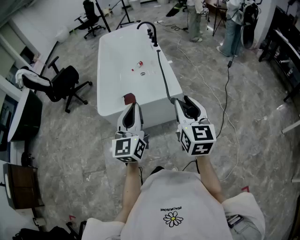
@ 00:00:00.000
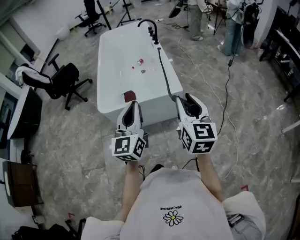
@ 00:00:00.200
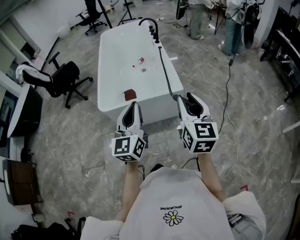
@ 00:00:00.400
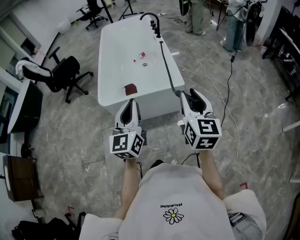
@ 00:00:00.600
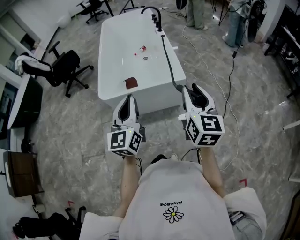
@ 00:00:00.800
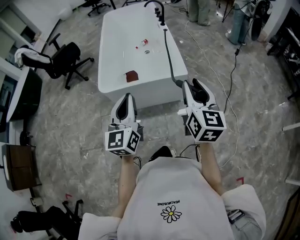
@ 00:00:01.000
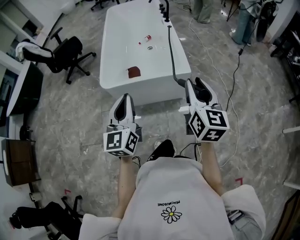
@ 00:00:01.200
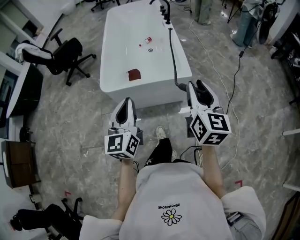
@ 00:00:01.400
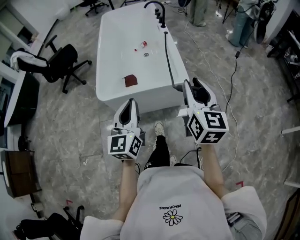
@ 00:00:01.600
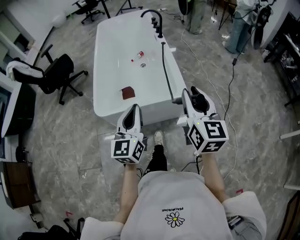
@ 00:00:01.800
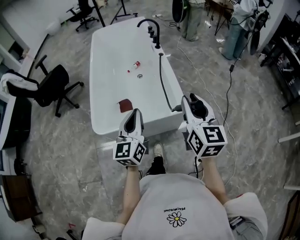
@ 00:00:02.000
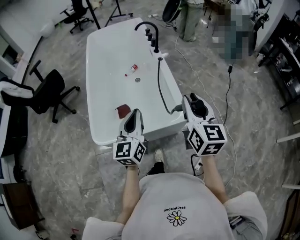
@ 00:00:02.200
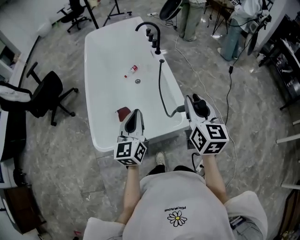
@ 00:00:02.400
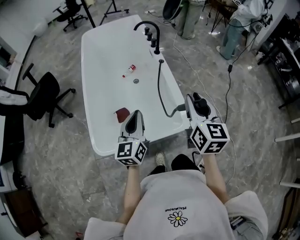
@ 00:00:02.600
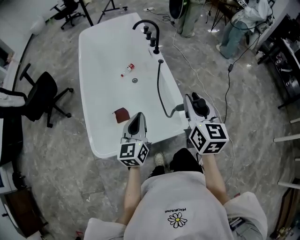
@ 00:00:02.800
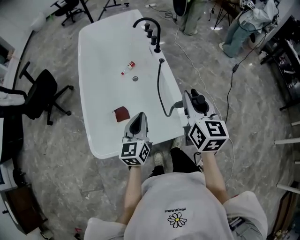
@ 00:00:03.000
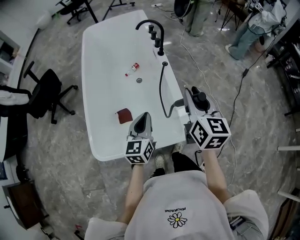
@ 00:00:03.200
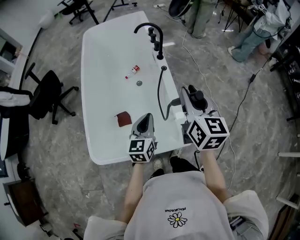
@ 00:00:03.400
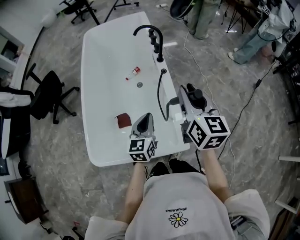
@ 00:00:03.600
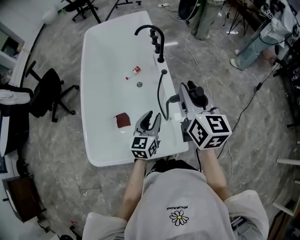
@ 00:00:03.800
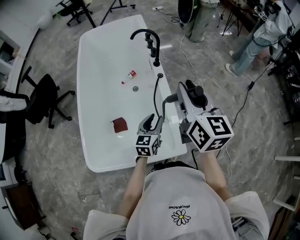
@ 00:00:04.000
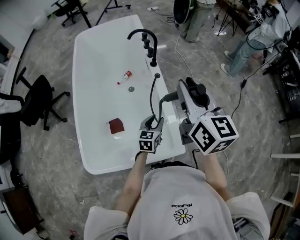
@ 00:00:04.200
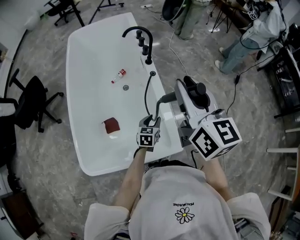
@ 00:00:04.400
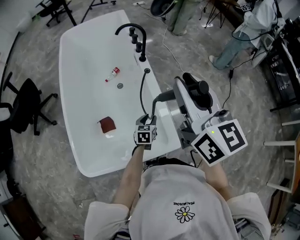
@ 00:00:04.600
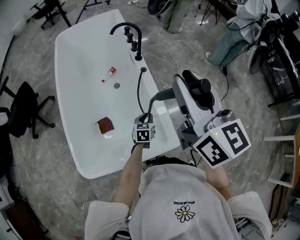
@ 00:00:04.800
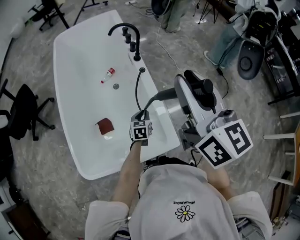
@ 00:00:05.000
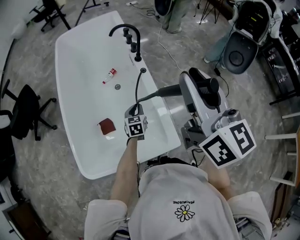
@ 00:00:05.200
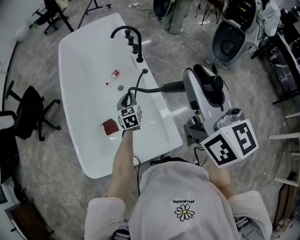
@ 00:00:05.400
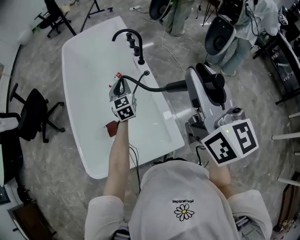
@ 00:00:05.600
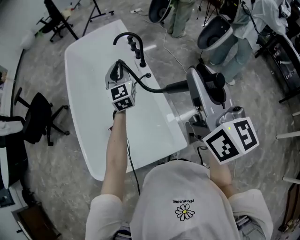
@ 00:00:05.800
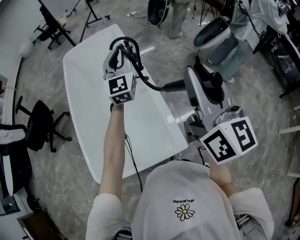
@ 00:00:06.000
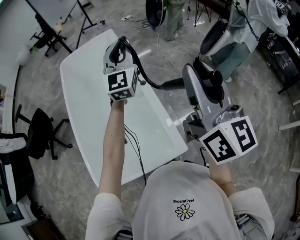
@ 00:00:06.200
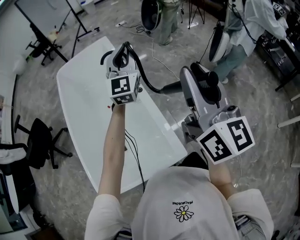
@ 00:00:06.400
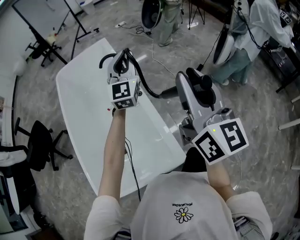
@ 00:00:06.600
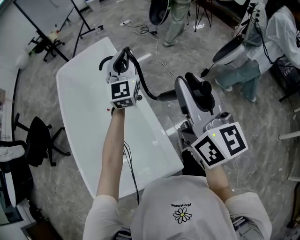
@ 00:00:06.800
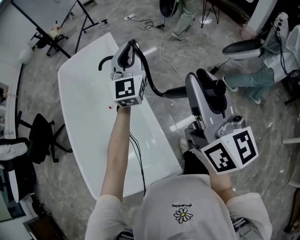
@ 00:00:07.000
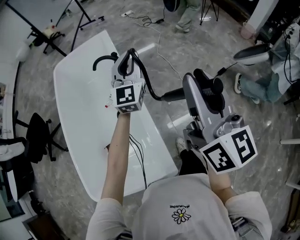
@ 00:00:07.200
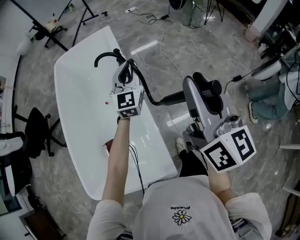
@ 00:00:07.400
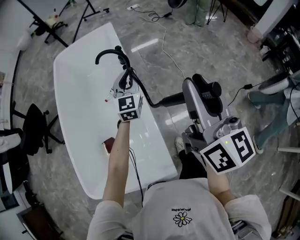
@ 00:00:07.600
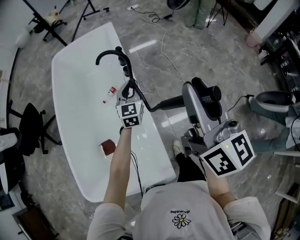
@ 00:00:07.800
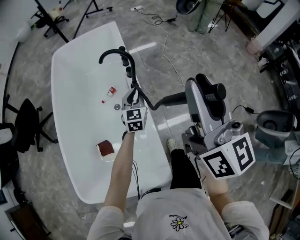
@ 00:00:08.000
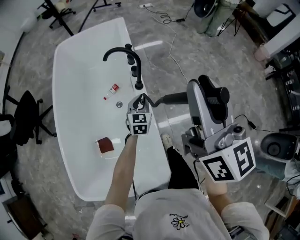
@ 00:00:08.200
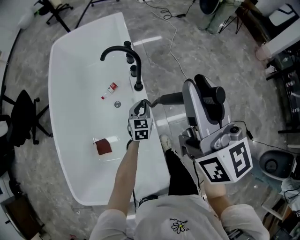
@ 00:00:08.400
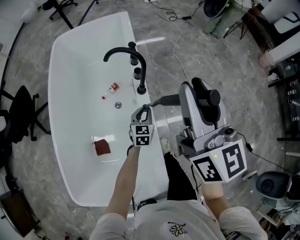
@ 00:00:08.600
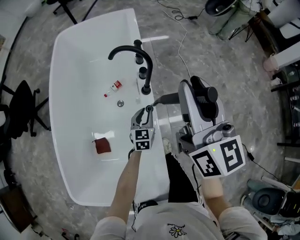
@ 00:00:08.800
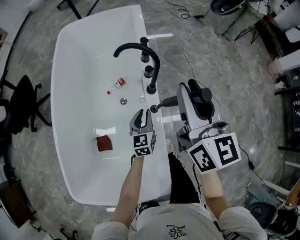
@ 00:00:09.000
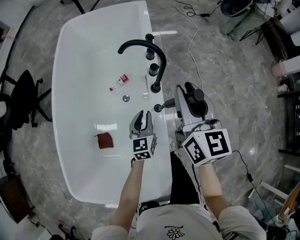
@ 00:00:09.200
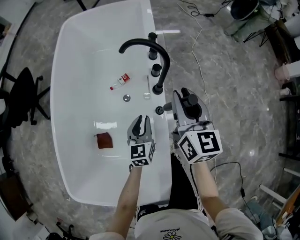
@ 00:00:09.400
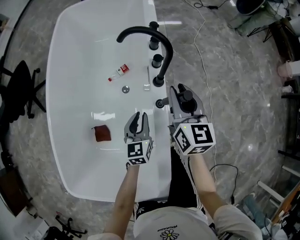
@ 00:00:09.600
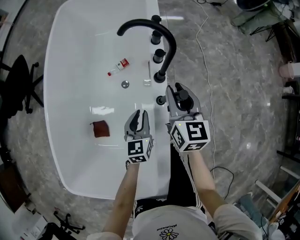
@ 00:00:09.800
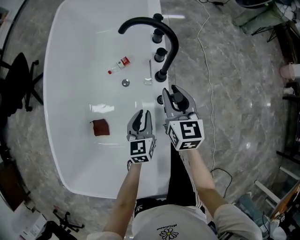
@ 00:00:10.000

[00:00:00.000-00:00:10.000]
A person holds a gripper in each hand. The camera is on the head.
00:00:00.000 to 00:00:01.400: The left gripper goes approximately 5 cm to the left.
00:00:01.400 to 00:00:02.800: The two grippers go roughly 40 cm forward.
00:00:02.800 to 00:00:04.200: The right gripper is displaced forward and upward by roughly 20 cm; the left gripper moves forward, downward and to the right, roughly 30 cm, rotates some 20 degrees, and opens its fingers.
00:00:04.200 to 00:00:05.800: The right gripper moves upward and to the right, roughly 10 cm. The left gripper moves upward and forward, about 30 cm, turns by roughly 40 degrees, and closes its fingers.
00:00:05.800 to 00:00:07.200: The right gripper goes roughly 20 cm forward and to the right. Meanwhile the left gripper is displaced to the right and forward by some 25 cm.
00:00:07.200 to 00:00:08.600: The left gripper heads downward, covering about 40 cm, and tilts its fingers approximately 40 degrees downward. The right gripper goes roughly 25 cm forward, to the left and downward.
00:00:08.600 to 00:00:10.000: The right gripper moves downward, approximately 35 cm, and swivels about 30 degrees; the left gripper travels to the left by some 10 cm, and turns by about 20 degrees.

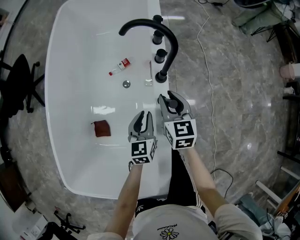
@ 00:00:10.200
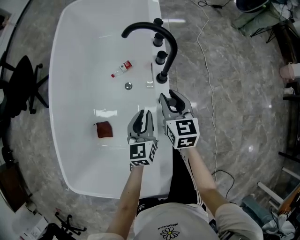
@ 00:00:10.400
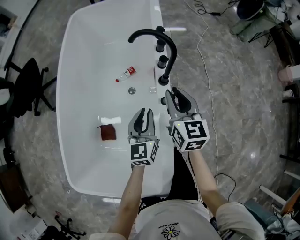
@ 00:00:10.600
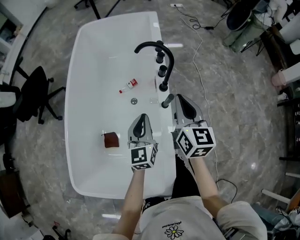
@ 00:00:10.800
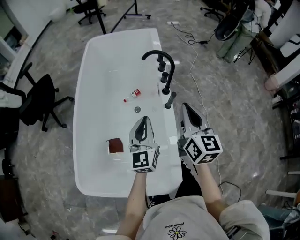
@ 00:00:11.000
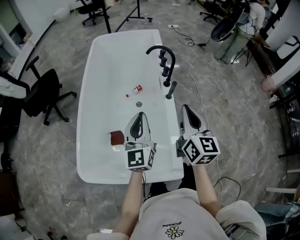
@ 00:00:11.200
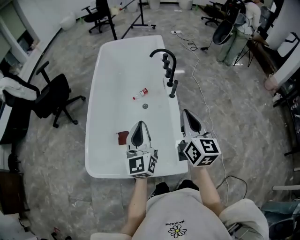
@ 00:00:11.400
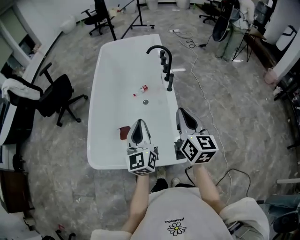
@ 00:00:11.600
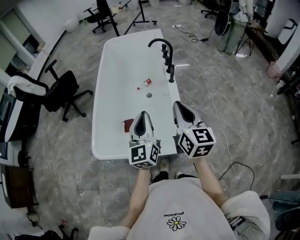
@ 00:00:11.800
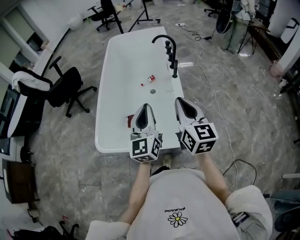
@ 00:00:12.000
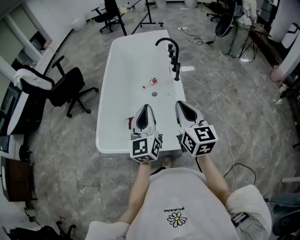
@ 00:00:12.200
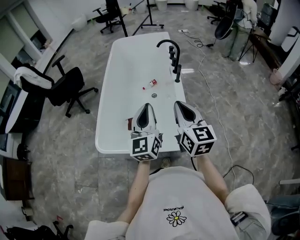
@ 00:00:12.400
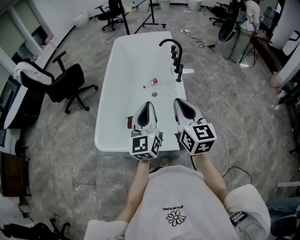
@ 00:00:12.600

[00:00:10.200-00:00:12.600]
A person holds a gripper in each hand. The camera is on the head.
00:00:10.200 to 00:00:11.400: The right gripper moves backward and upward, about 50 cm, rotates about 30 degrees, and closes up. The left gripper goes about 50 cm upward, backward and to the left, and tilts its fingers some 30 degrees upward.
00:00:11.400 to 00:00:12.600: The left gripper moves backward and upward, approximately 15 cm; the right gripper travels backward and to the left by some 15 cm.

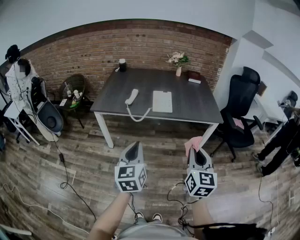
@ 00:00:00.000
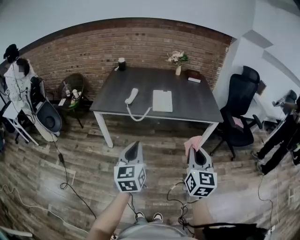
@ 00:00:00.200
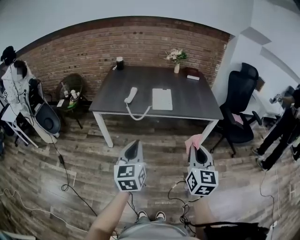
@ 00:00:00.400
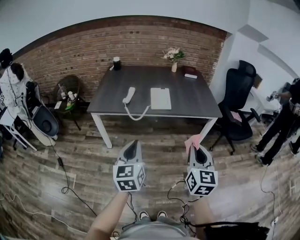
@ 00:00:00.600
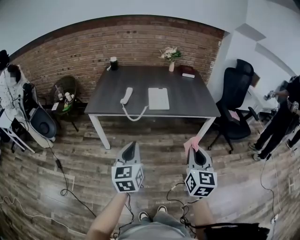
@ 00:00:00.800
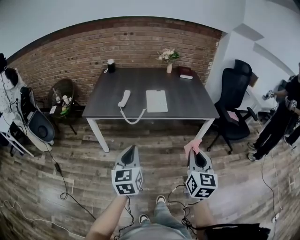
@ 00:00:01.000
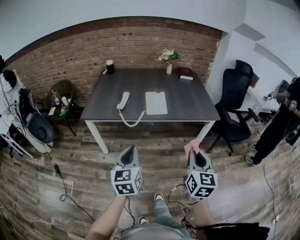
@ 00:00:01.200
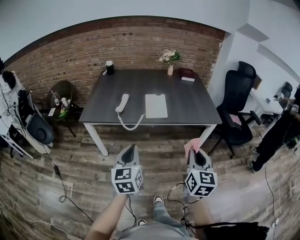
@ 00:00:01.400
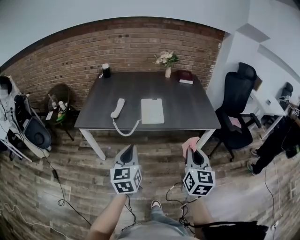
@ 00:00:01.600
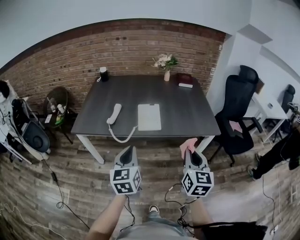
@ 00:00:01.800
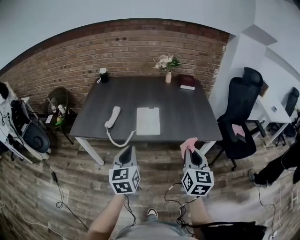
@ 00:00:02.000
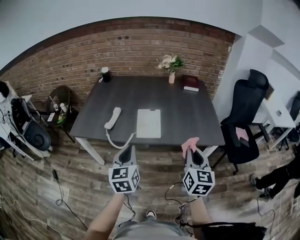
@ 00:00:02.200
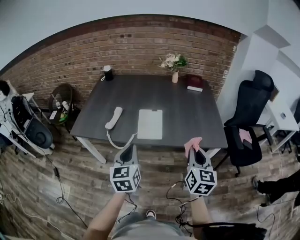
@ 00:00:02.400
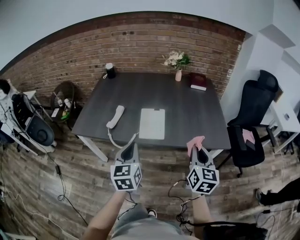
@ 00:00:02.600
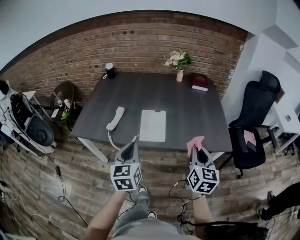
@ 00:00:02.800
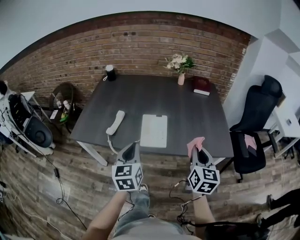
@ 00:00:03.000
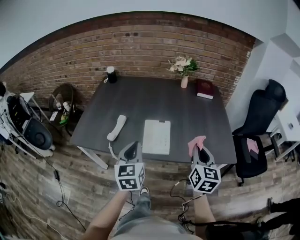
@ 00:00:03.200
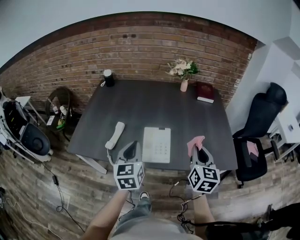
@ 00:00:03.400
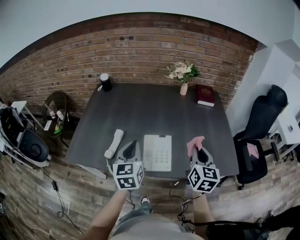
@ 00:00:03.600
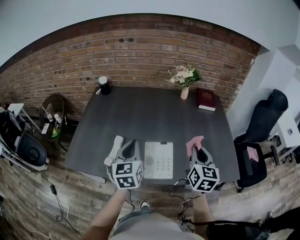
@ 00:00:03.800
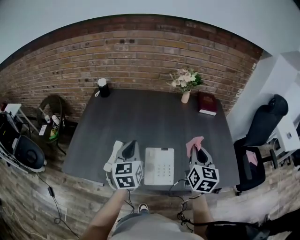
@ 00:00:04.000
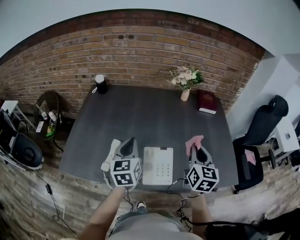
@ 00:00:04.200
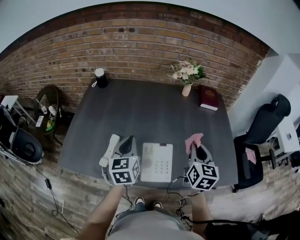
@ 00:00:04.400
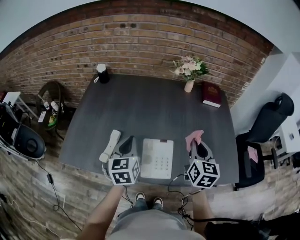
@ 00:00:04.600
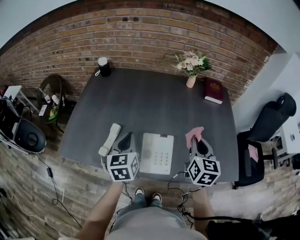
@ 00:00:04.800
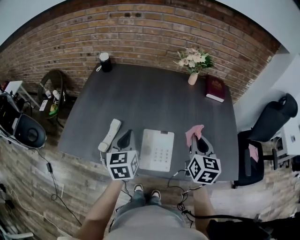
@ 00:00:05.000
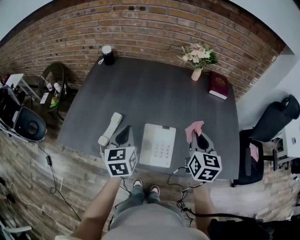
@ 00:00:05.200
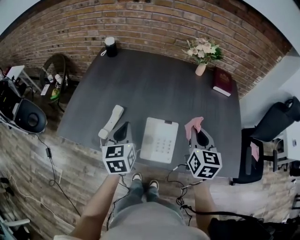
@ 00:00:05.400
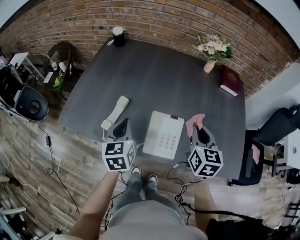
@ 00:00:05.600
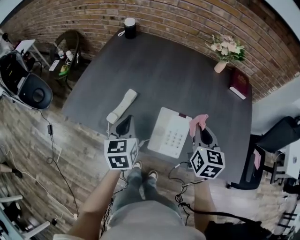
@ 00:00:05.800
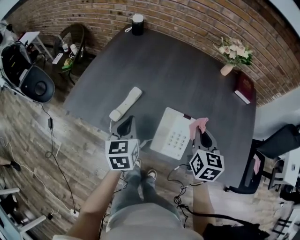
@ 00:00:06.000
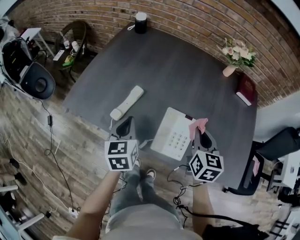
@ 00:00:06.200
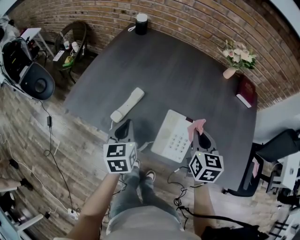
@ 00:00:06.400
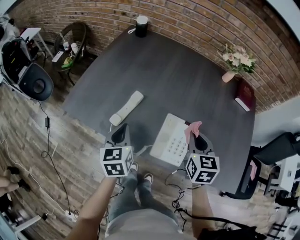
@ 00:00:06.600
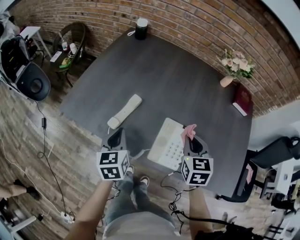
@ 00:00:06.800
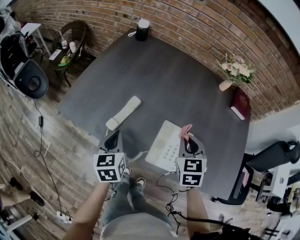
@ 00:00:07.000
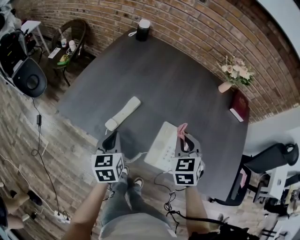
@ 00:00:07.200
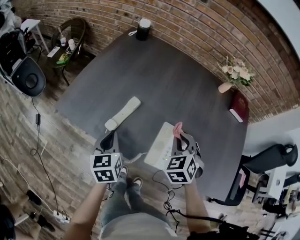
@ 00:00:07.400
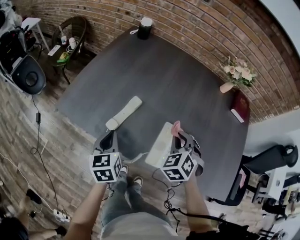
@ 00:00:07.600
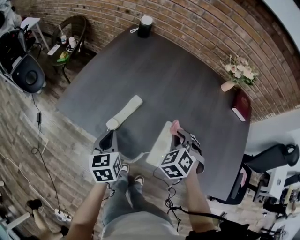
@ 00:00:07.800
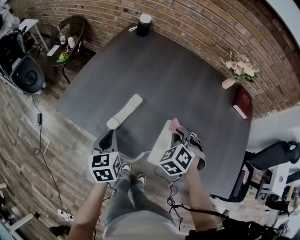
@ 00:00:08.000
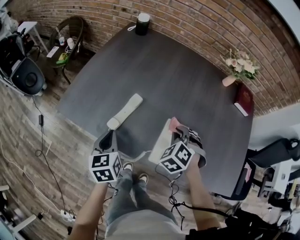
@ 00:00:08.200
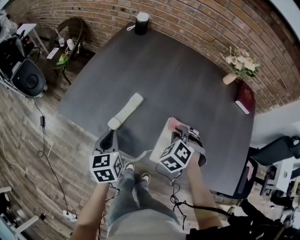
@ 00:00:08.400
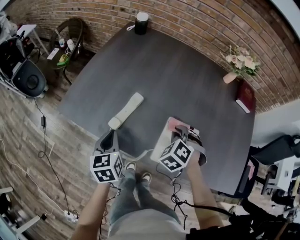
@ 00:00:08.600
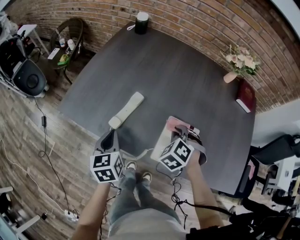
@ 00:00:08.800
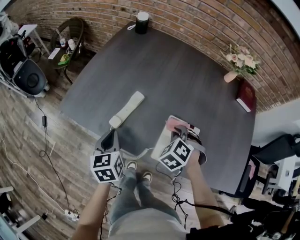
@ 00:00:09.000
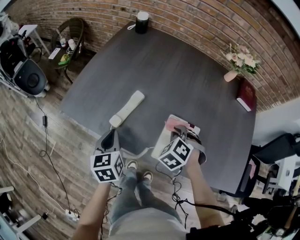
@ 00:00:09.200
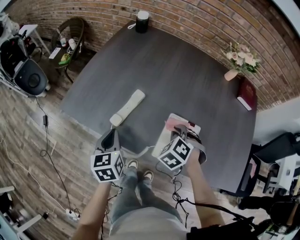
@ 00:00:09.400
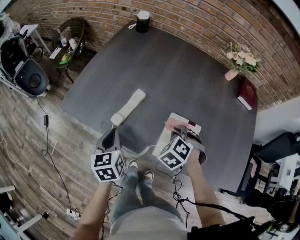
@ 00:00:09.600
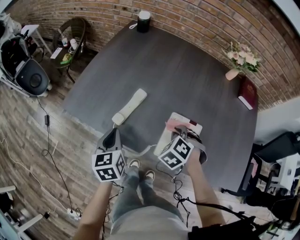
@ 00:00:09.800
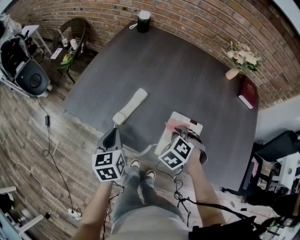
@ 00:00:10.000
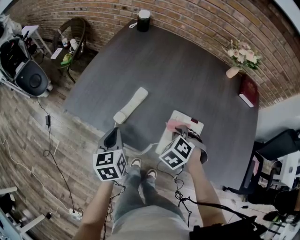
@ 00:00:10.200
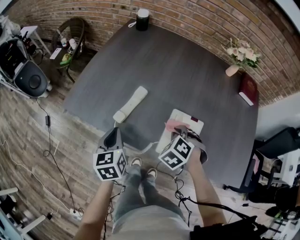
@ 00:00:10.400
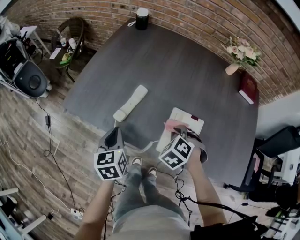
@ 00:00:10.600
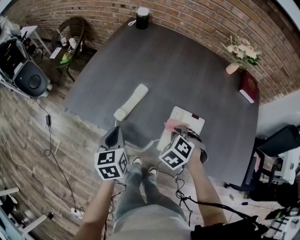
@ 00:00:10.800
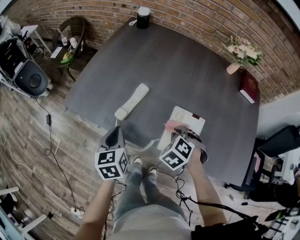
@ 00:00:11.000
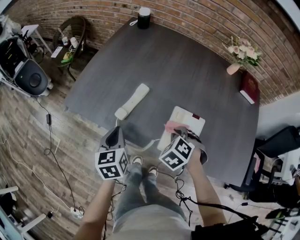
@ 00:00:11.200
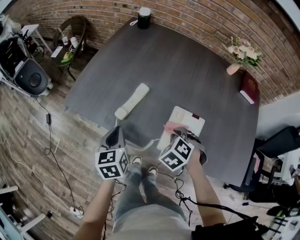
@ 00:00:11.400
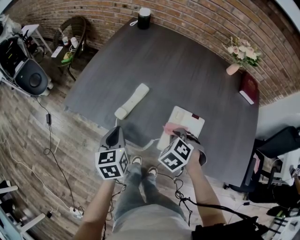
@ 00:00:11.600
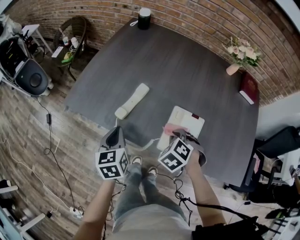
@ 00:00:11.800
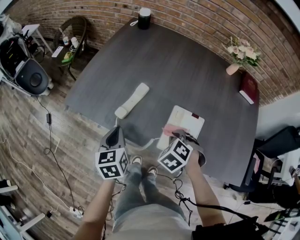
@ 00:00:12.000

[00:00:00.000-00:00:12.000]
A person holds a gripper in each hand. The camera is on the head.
00:00:00.000 to 00:00:01.600: The grippers both shift forward by some 15 cm.
00:00:01.600 to 00:00:03.000: The two grippers go roughly 25 cm forward.
00:00:03.000 to 00:00:04.400: Both grippers travel together forward, some 25 cm.
00:00:04.400 to 00:00:06.000: The left gripper shifts about 15 cm downward, to the left and backward; the right gripper heads downward and to the left, covering some 10 cm, and turns by about 20 degrees.
00:00:06.000 to 00:00:07.600: Both grippers move to the left and downward, roughly 10 cm. The right gripper twists some 50 degrees counterclockwise, seen from behind.
00:00:07.600 to 00:00:09.000: The right gripper moves downward, some 5 cm.
00:00:09.000 to 00:00:10.400: The grippers move only a little.
00:00:10.400 to 00:00:12.000: The grippers make only small movements.
